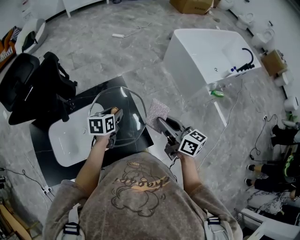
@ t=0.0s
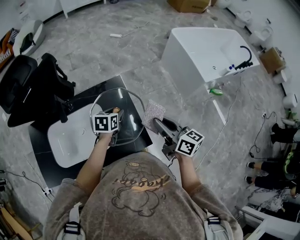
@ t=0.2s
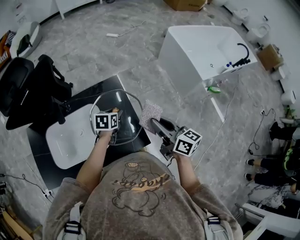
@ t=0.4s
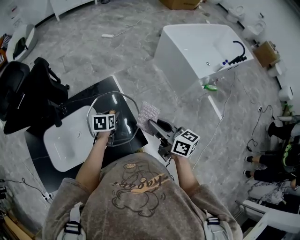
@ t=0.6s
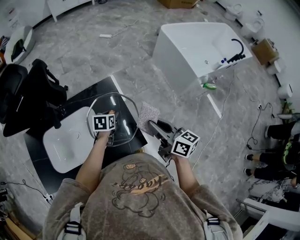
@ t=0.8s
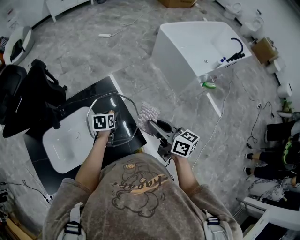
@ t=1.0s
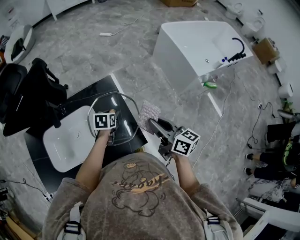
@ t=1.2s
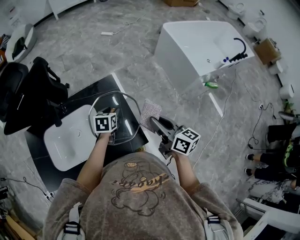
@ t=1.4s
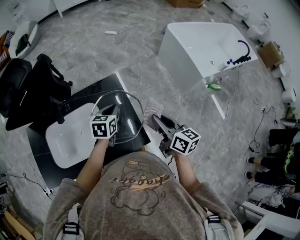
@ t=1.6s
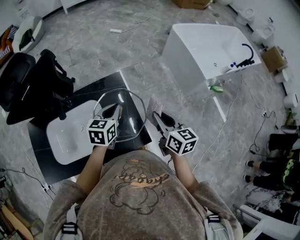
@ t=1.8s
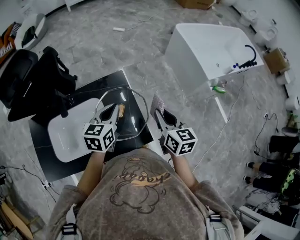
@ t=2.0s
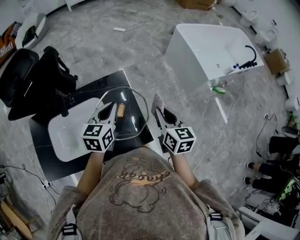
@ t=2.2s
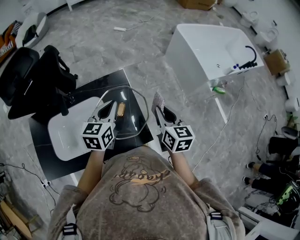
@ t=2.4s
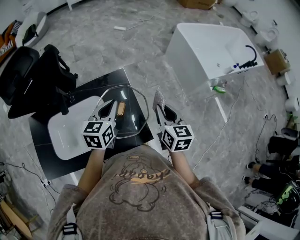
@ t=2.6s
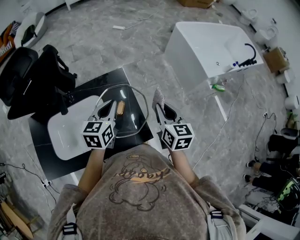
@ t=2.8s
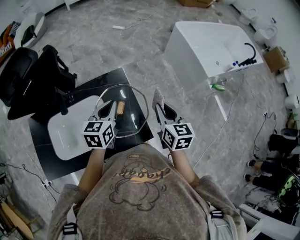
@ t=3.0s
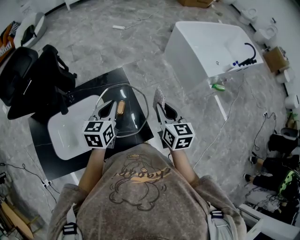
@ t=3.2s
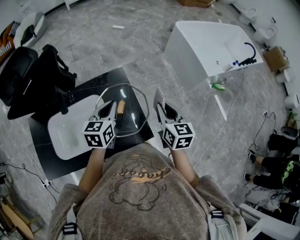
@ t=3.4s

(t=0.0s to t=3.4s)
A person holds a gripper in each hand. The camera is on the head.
t=0.0s - t=1.6s: The left gripper moves approximately 10 cm downward and comes back, and closes its fingers.
t=1.6s - t=3.4s: The left gripper travels upward by roughly 10 cm. Meanwhile the right gripper rotates some 30 degrees.

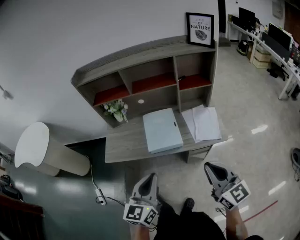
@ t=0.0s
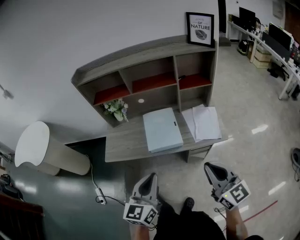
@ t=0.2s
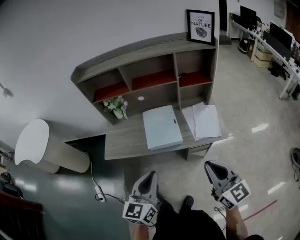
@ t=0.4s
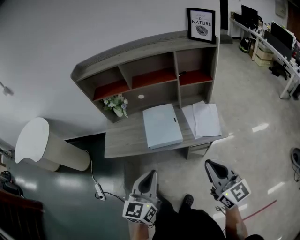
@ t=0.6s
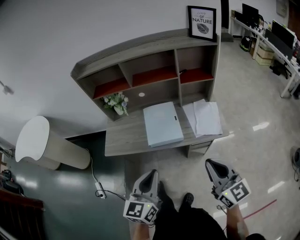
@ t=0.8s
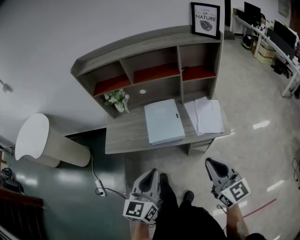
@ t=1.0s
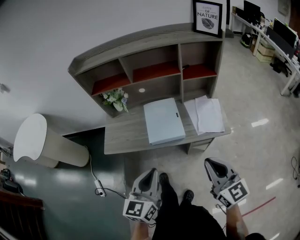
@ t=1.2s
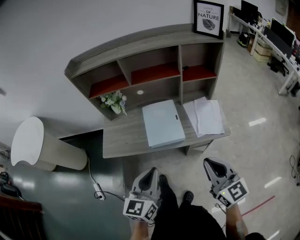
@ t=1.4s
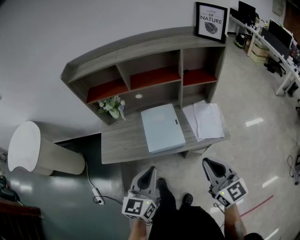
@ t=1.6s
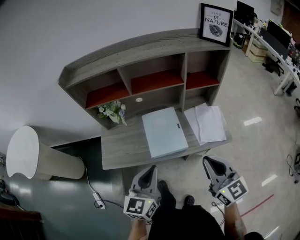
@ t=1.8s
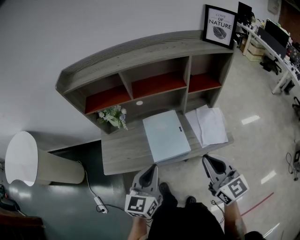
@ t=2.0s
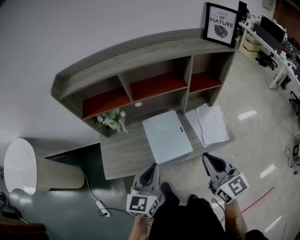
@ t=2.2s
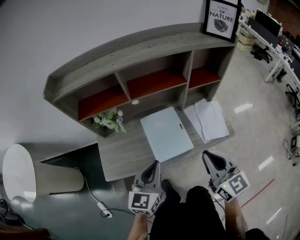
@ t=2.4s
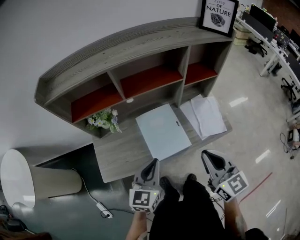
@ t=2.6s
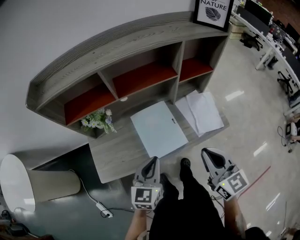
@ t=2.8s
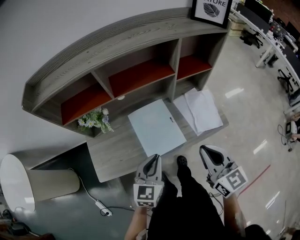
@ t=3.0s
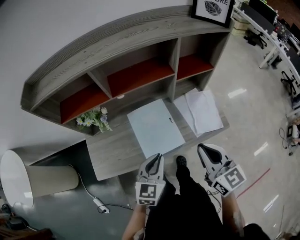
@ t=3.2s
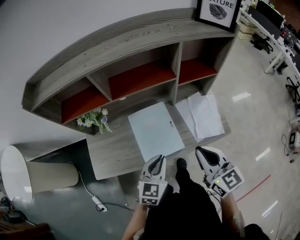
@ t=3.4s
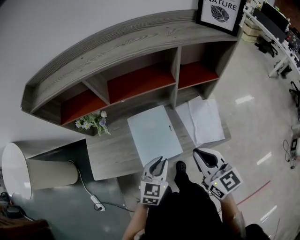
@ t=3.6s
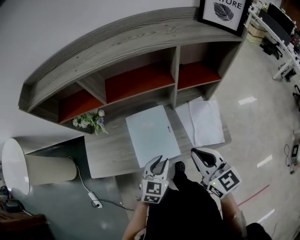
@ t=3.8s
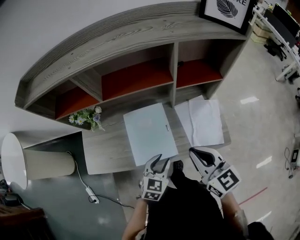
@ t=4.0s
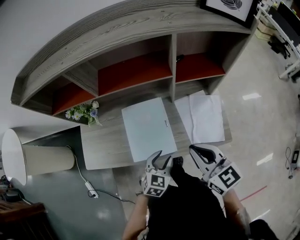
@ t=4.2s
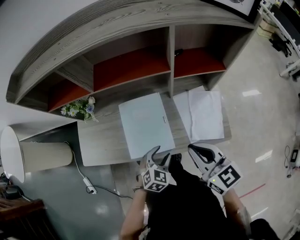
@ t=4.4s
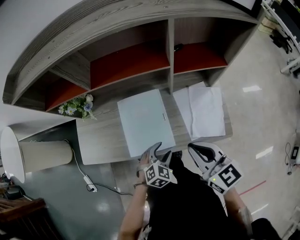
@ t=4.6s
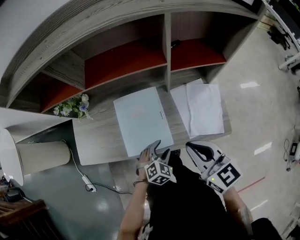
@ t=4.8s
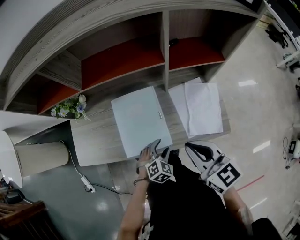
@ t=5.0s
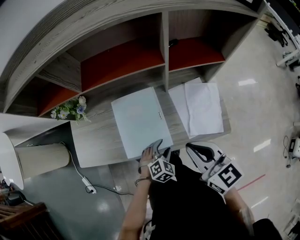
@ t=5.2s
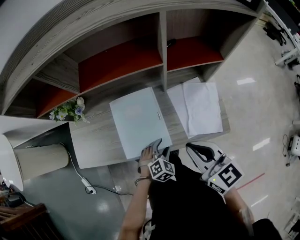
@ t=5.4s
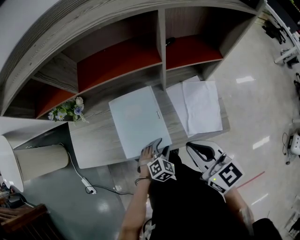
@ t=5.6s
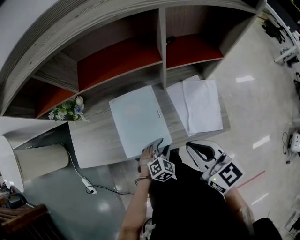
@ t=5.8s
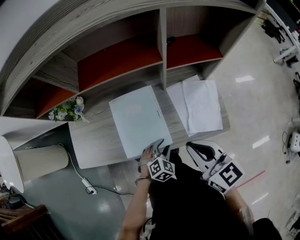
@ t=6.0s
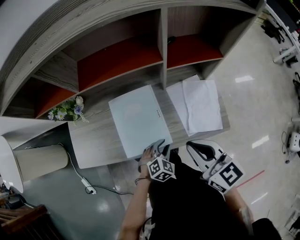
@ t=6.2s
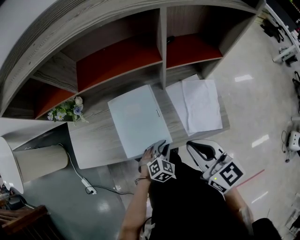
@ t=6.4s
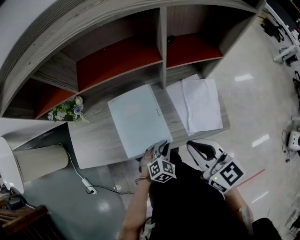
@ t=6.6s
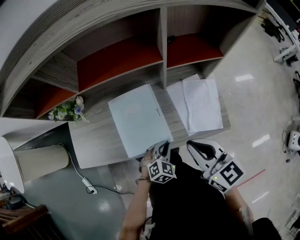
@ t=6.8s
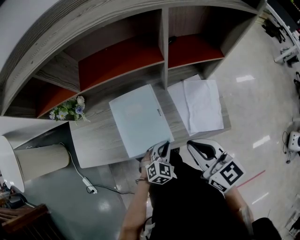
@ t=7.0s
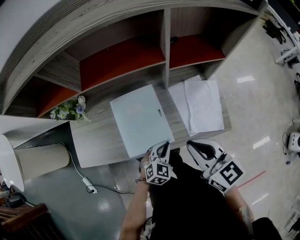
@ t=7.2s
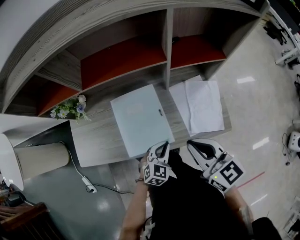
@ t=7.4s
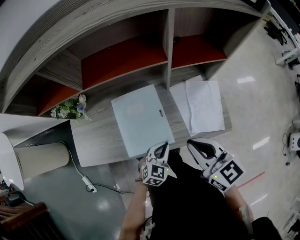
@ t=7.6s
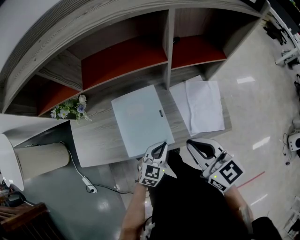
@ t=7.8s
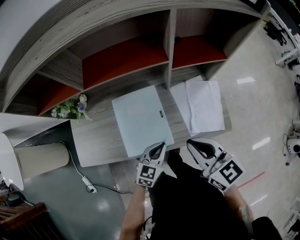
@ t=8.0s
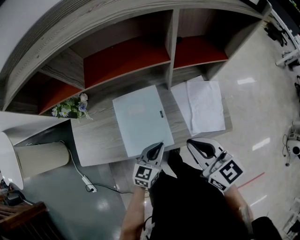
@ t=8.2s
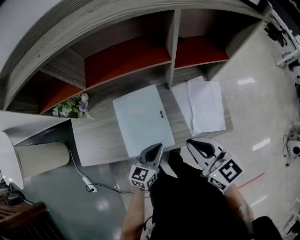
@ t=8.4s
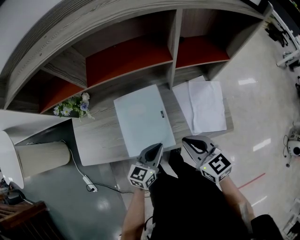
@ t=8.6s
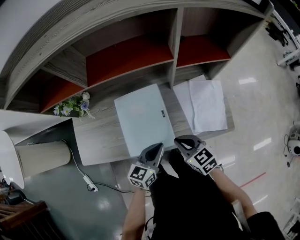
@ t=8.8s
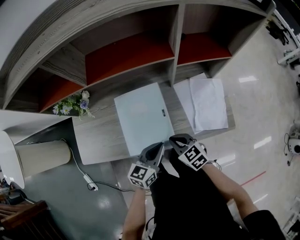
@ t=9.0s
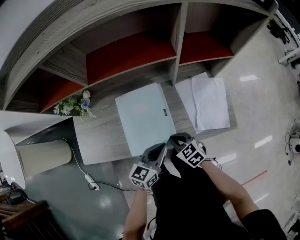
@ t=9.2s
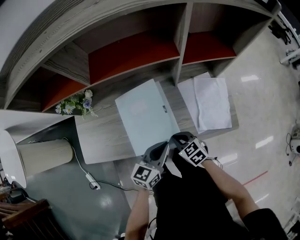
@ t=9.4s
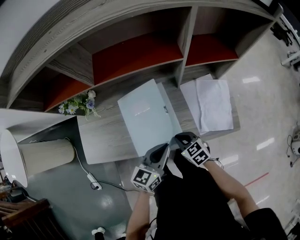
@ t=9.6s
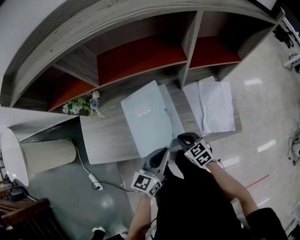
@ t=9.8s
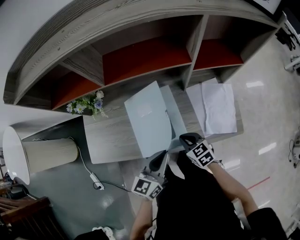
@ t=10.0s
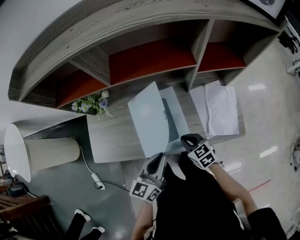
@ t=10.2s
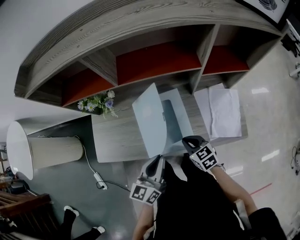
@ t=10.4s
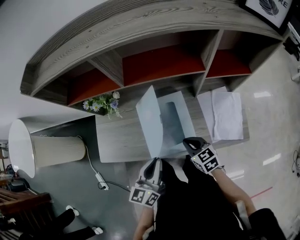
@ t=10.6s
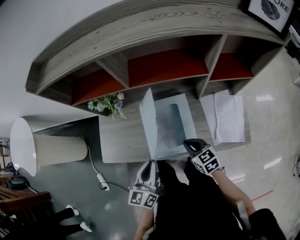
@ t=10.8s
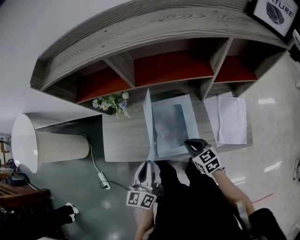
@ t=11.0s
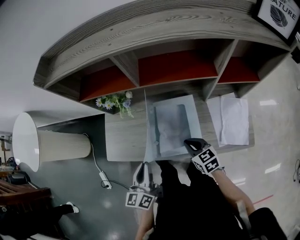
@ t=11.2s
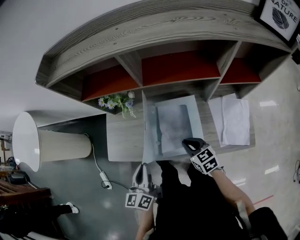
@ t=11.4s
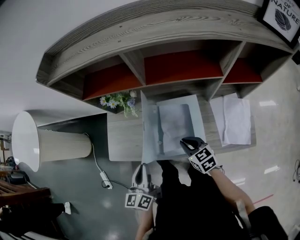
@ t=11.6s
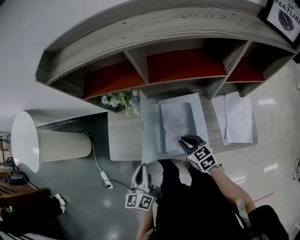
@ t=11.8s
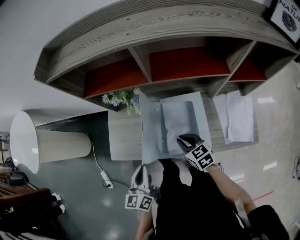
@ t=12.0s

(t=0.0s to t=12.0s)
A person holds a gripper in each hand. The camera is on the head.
t=0.0s - t=1.6s: Both grippers move forward, roughly 10 cm.
t=1.6s - t=3.0s: The left gripper travels forward and downward by some 15 cm; the right gripper travels forward and to the left by roughly 15 cm.
t=3.0s - t=4.4s: The left gripper shifts roughly 20 cm downward and to the right, swivels some 30 degrees, and opens up, while the right gripper shifts approximately 15 cm forward, downward and to the right, and swivels approximately 20 degrees.
t=4.4s - t=6.0s: The left gripper shifts about 5 cm downward.
t=6.0s - t=7.6s: The left gripper rotates roughly 20 degrees, and closes its fingers.
t=7.6s - t=9.0s: The left gripper ends up approximately 5 cm from where it was, and swivels approximately 30 degrees. Meanwhile the right gripper moves downward, about 20 cm, and turns by some 20 degrees.
t=9.0s - t=10.4s: The left gripper travels to the left and upward by about 15 cm, and turns by roughly 20 degrees.
t=10.4s - t=12.0s: The left gripper moves to the left, approximately 20 cm, and rotates roughly 20 degrees. The right gripper is displaced to the left and forward by some 15 cm.

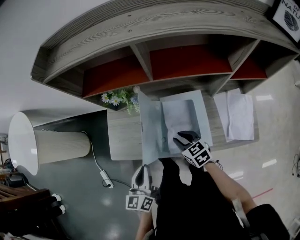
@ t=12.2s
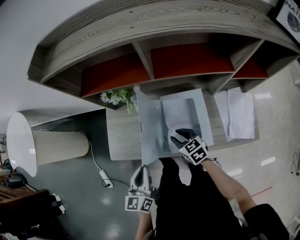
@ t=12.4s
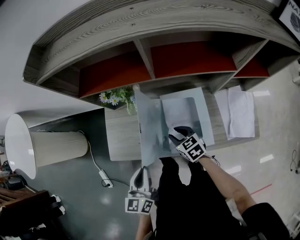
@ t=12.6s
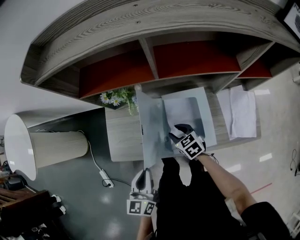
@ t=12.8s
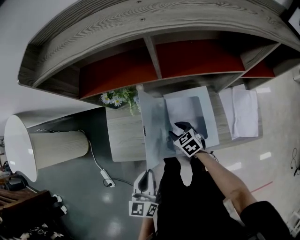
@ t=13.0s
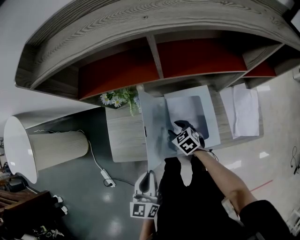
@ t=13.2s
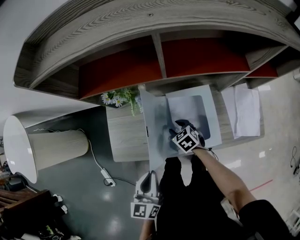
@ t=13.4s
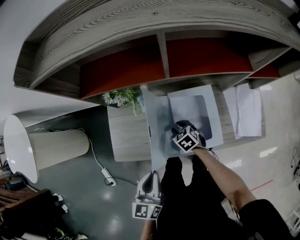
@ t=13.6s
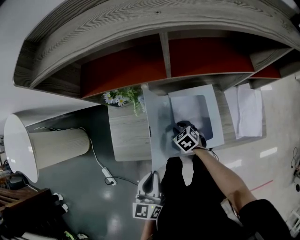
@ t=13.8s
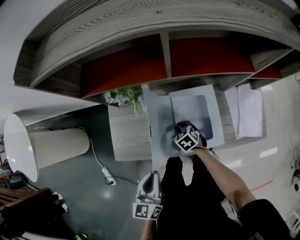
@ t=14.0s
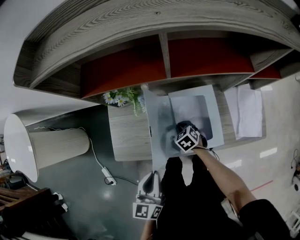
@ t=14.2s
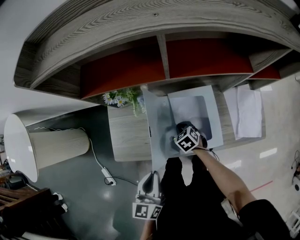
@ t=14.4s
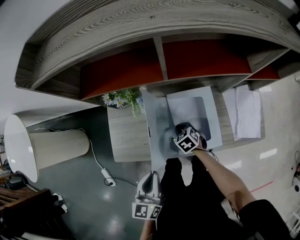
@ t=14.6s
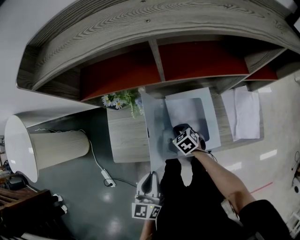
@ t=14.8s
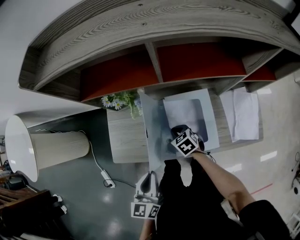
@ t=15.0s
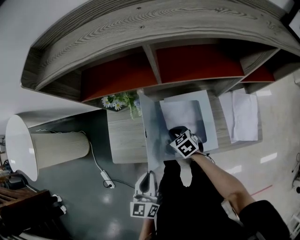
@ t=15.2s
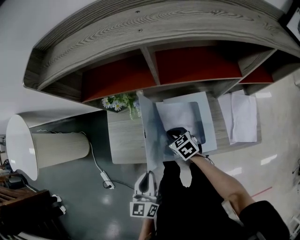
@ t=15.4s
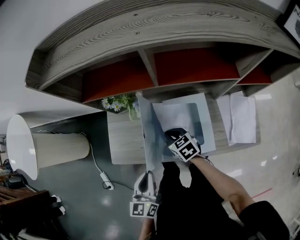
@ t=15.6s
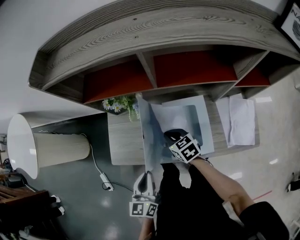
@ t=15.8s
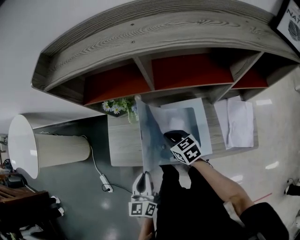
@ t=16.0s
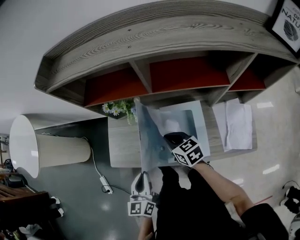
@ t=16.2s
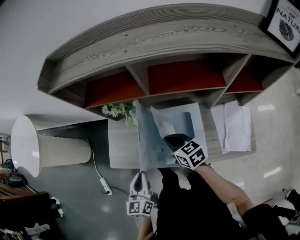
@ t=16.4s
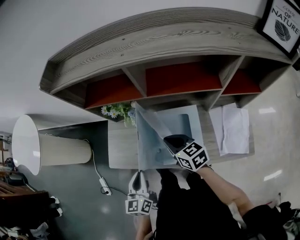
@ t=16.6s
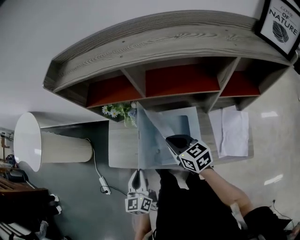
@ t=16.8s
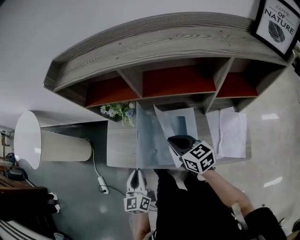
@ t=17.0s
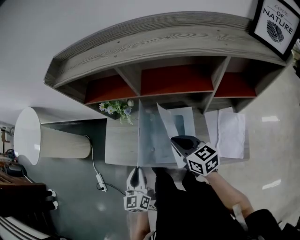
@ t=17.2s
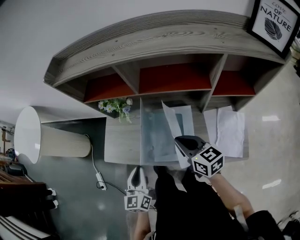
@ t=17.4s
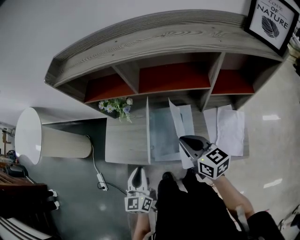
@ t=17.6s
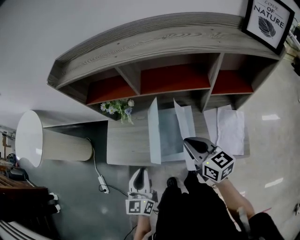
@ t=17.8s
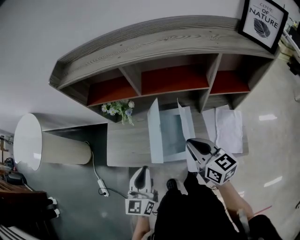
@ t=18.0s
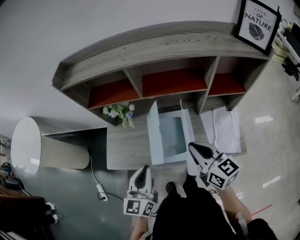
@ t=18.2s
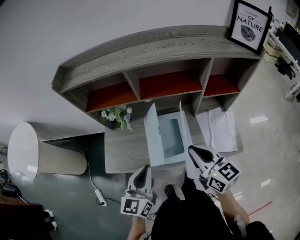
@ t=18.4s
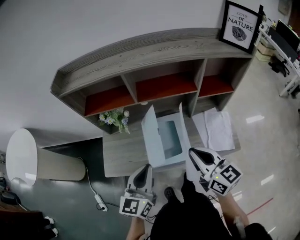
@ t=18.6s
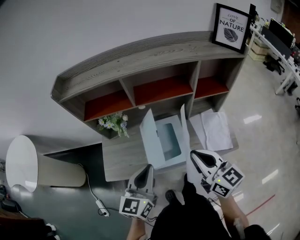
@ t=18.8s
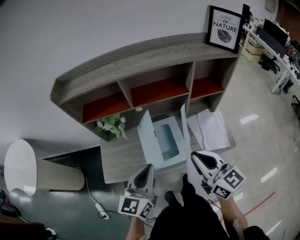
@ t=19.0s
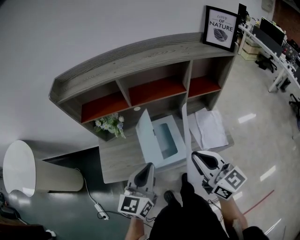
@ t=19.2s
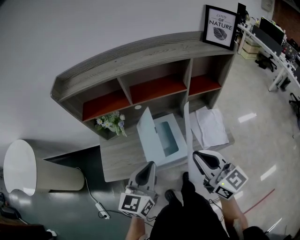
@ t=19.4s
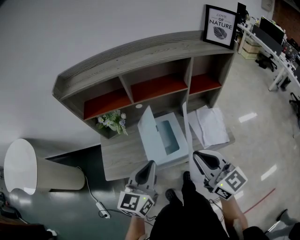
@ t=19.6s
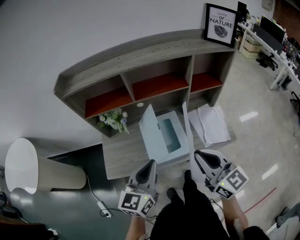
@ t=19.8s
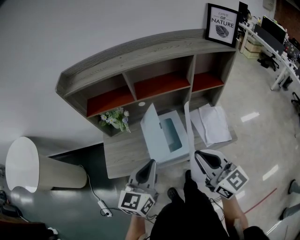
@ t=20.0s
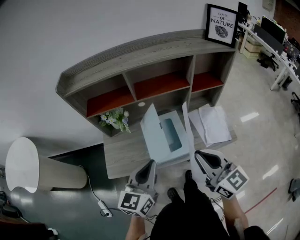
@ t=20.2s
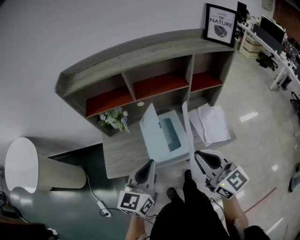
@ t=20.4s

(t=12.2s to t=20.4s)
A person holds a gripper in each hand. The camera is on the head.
t=12.2s - t=13.8s: The right gripper goes approximately 15 cm downward and forward, and rotates some 20 degrees.
t=13.8s - t=15.4s: The right gripper is displaced upward by about 10 cm.
t=15.4s - t=17.2s: The left gripper is displaced to the right by roughly 5 cm. The right gripper is displaced upward, to the right and backward by roughly 25 cm, and swivels about 30 degrees.
t=17.2s - t=18.8s: Both grippers move upward, some 15 cm. The left gripper turns by roughly 30 degrees. Meanwhile the right gripper swivels approximately 30 degrees.
t=18.8s - t=20.4s: The right gripper heads backward, covering roughly 5 cm.
